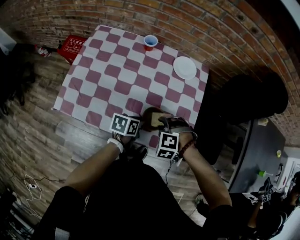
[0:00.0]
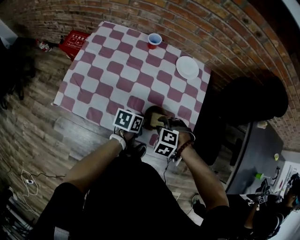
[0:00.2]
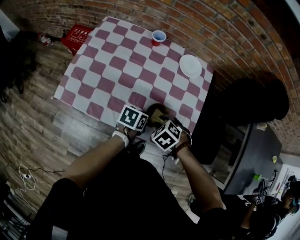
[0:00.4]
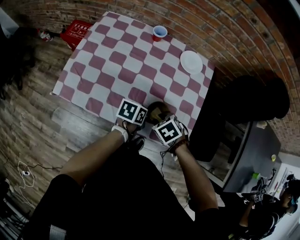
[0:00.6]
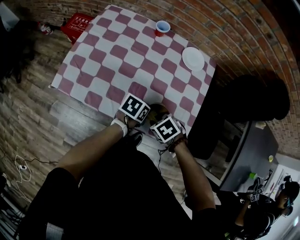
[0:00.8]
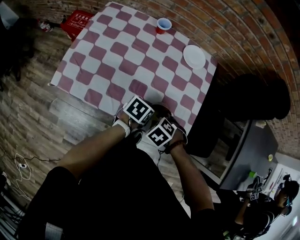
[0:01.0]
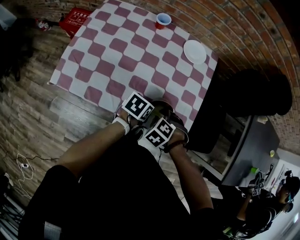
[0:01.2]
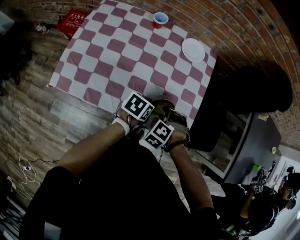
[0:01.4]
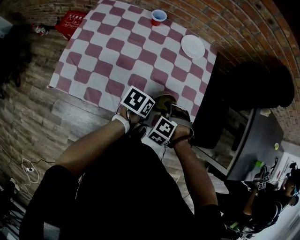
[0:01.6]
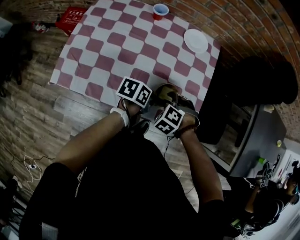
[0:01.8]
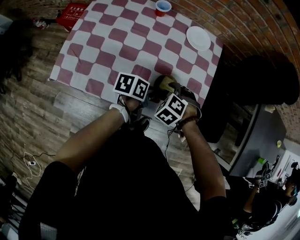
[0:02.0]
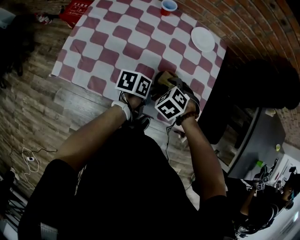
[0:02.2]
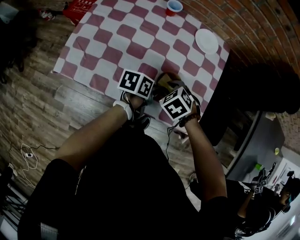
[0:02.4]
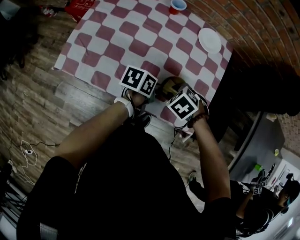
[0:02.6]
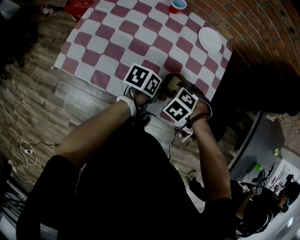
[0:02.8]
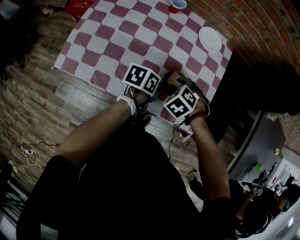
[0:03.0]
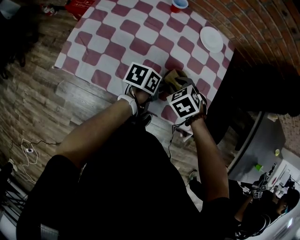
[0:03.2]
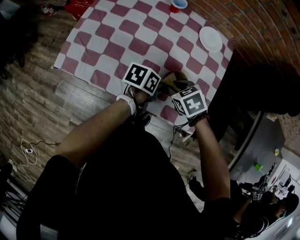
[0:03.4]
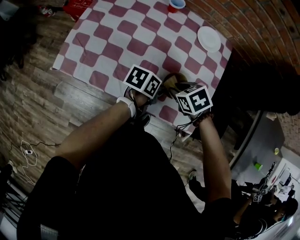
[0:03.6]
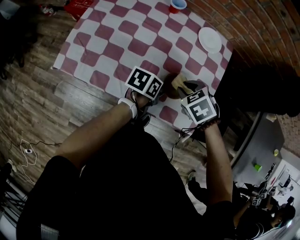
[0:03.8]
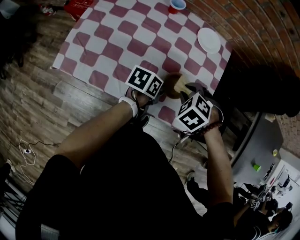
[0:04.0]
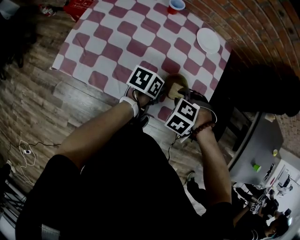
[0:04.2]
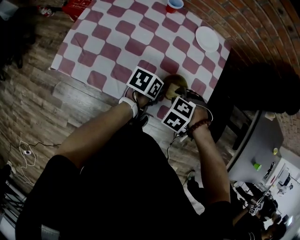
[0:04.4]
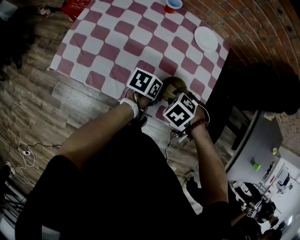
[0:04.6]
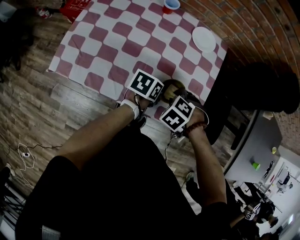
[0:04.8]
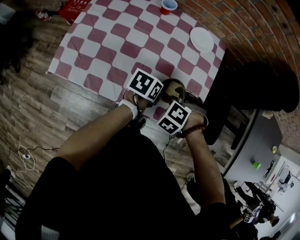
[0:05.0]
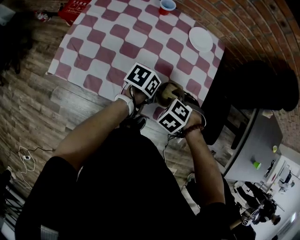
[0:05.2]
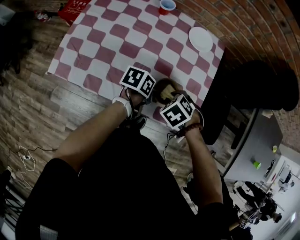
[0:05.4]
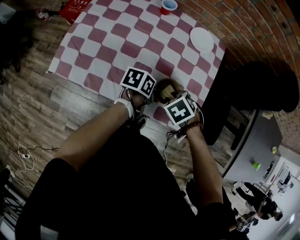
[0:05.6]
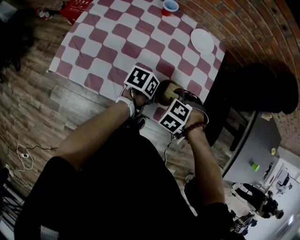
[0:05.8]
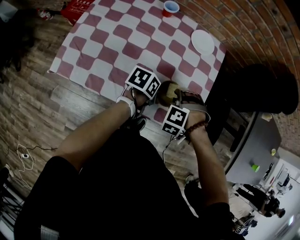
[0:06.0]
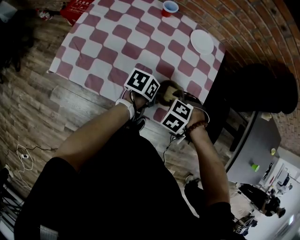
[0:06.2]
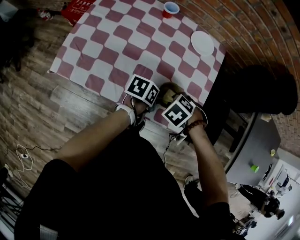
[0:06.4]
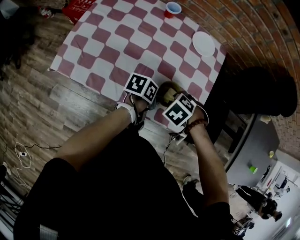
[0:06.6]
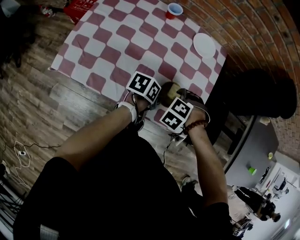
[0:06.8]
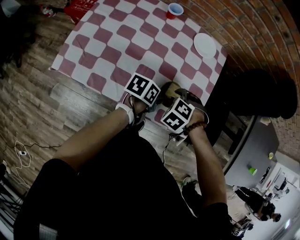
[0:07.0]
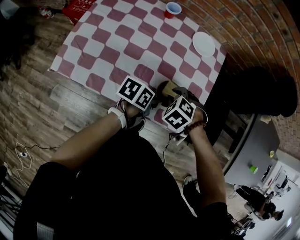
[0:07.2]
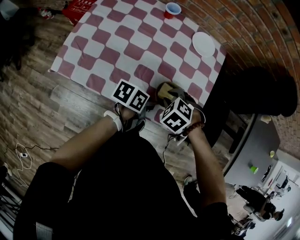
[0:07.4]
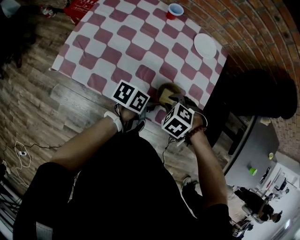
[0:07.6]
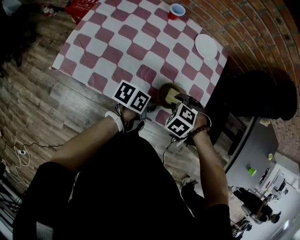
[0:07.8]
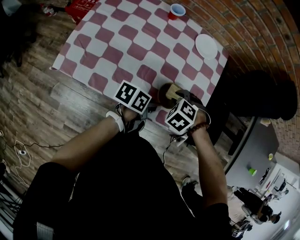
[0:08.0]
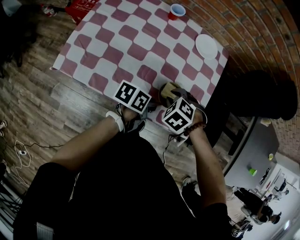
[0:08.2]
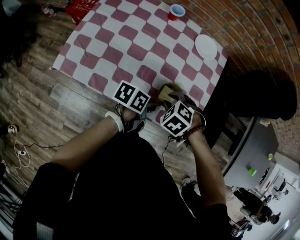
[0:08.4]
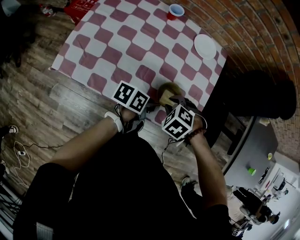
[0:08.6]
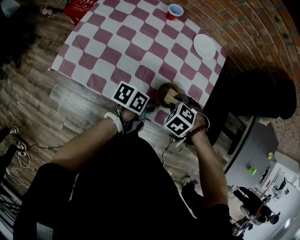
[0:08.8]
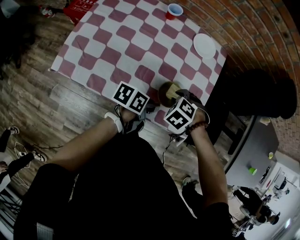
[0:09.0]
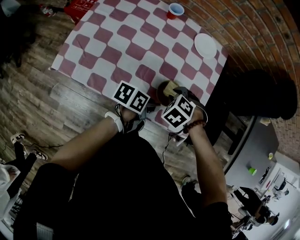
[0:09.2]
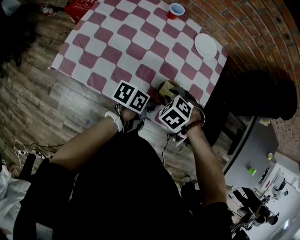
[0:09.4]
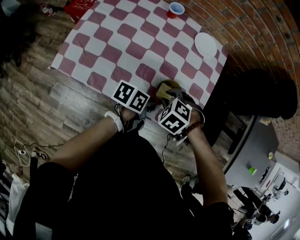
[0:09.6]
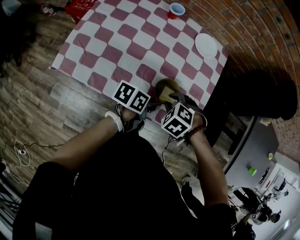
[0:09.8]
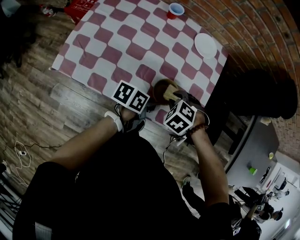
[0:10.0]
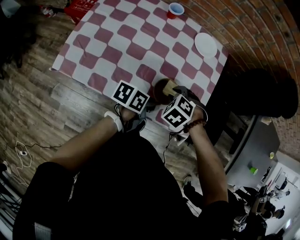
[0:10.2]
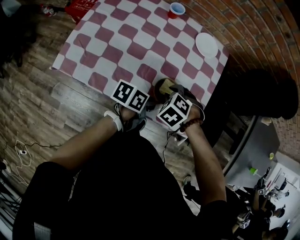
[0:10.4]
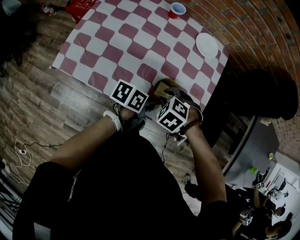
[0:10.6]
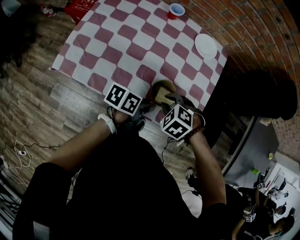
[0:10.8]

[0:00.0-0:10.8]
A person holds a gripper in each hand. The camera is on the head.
0:01.6 to 0:03.0: The right gripper ends up about 5 cm from where it was.
0:03.0 to 0:04.6: The right gripper ends up roughly 5 cm from where it was.
0:06.2 to 0:07.8: The left gripper ends up some 5 cm from where it was.
0:07.8 to 0:09.2: The grippers make only small movements.
0:09.2 to 0:10.8: The right gripper moves some 5 cm.

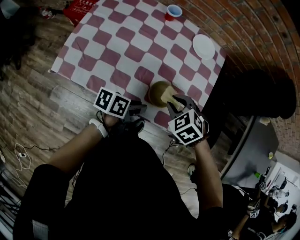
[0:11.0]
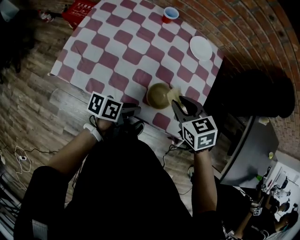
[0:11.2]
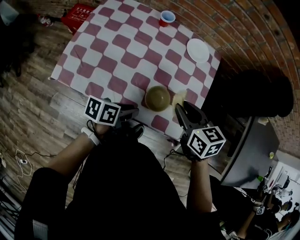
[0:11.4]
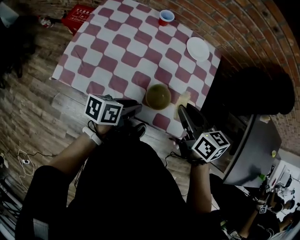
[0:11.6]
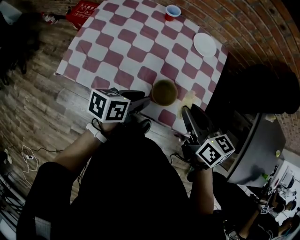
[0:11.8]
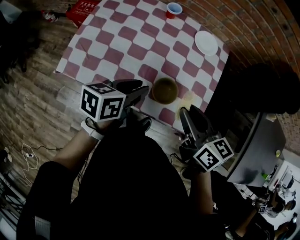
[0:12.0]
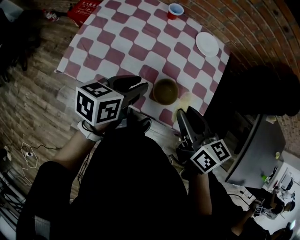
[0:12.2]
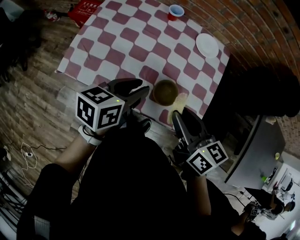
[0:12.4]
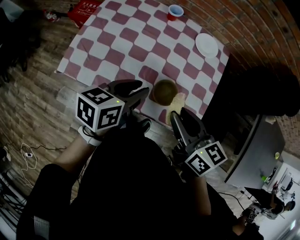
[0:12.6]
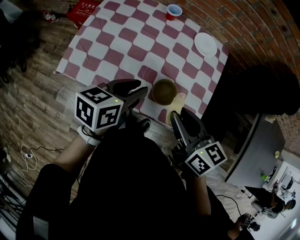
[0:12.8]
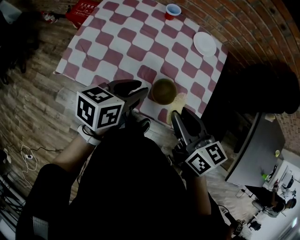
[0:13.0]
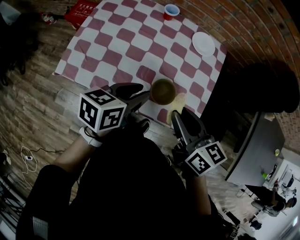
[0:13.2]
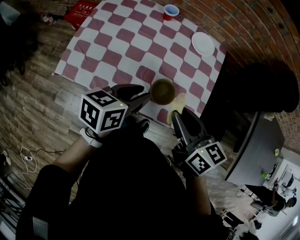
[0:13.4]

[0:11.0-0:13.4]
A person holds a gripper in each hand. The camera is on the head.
0:11.0 to 0:12.2: The left gripper shifts some 15 cm upward and to the left, and turns by roughly 30 degrees. Meanwhile the right gripper heads upward, covering roughly 15 cm, and tilts its fingers some 40 degrees upward.
0:12.2 to 0:13.4: The grippers stay close to where they were, moving slightly.

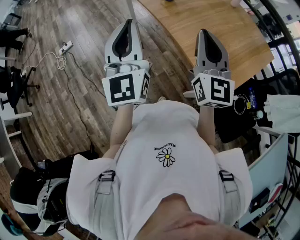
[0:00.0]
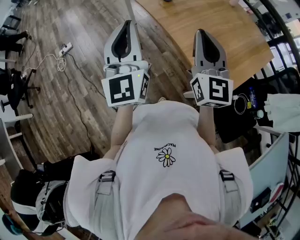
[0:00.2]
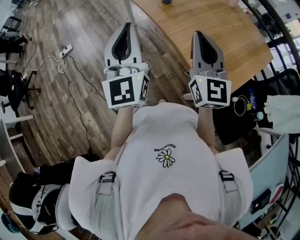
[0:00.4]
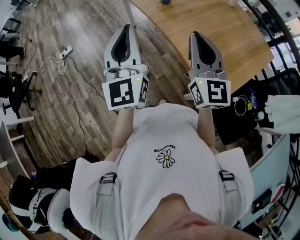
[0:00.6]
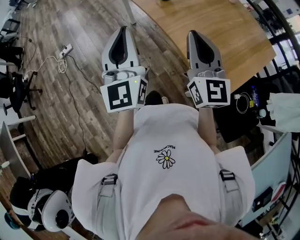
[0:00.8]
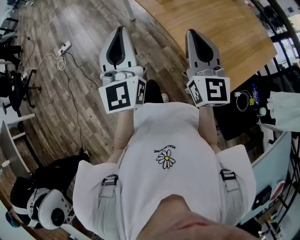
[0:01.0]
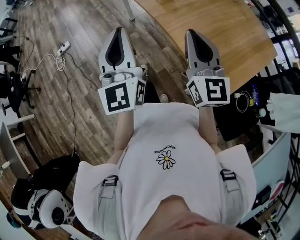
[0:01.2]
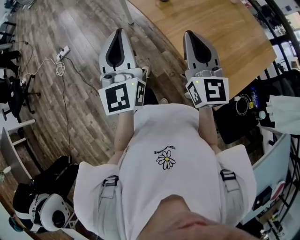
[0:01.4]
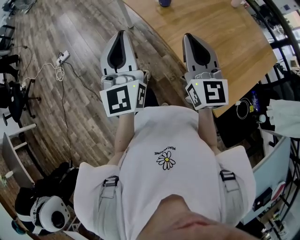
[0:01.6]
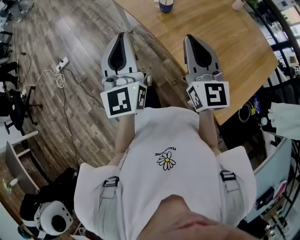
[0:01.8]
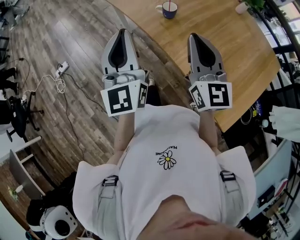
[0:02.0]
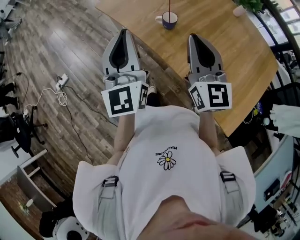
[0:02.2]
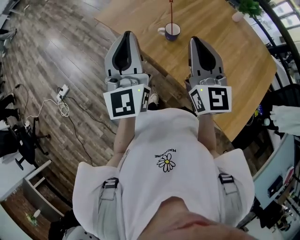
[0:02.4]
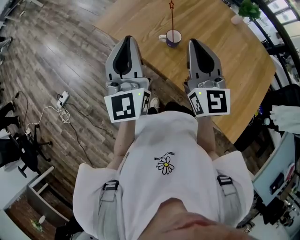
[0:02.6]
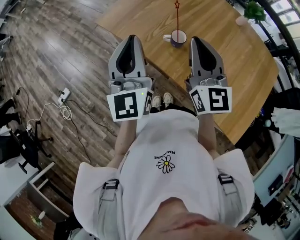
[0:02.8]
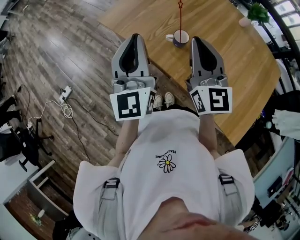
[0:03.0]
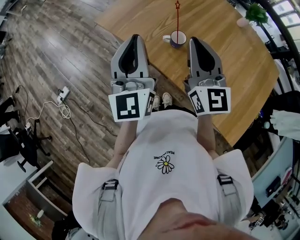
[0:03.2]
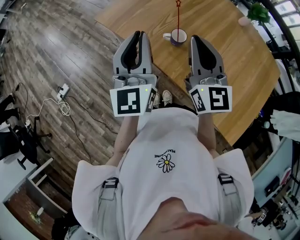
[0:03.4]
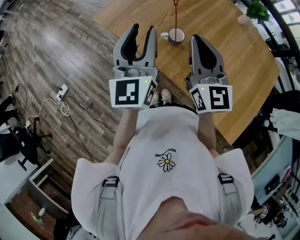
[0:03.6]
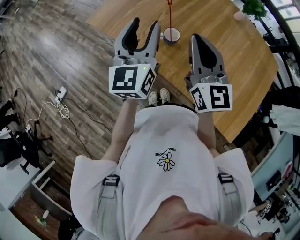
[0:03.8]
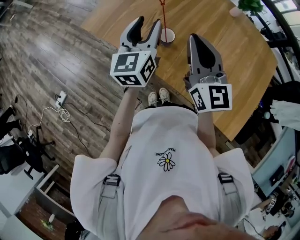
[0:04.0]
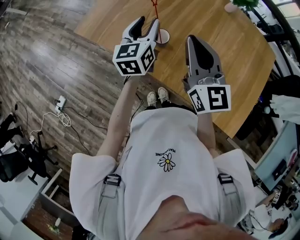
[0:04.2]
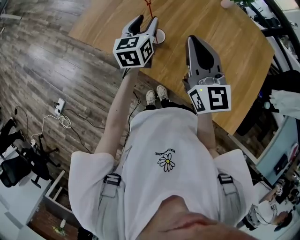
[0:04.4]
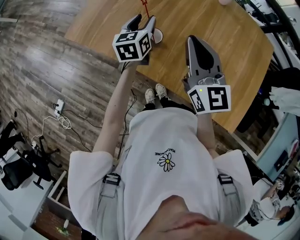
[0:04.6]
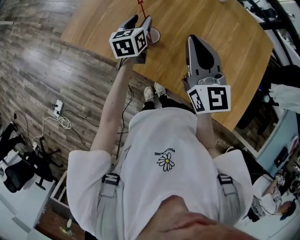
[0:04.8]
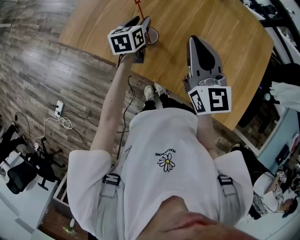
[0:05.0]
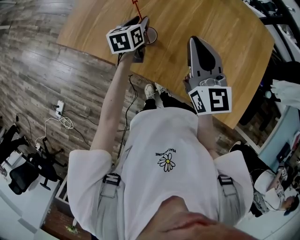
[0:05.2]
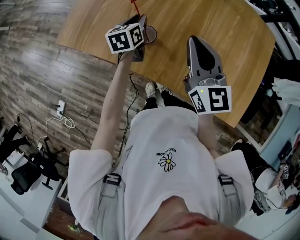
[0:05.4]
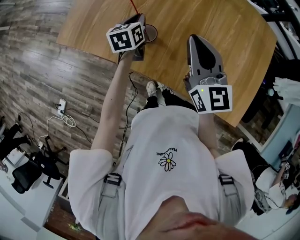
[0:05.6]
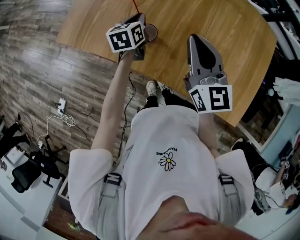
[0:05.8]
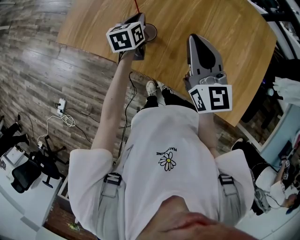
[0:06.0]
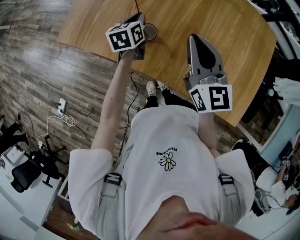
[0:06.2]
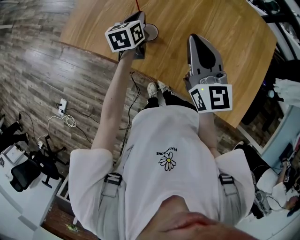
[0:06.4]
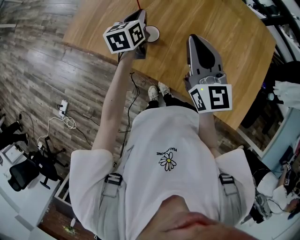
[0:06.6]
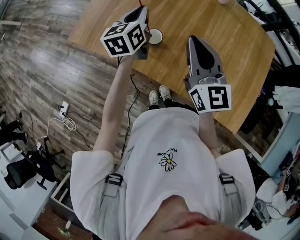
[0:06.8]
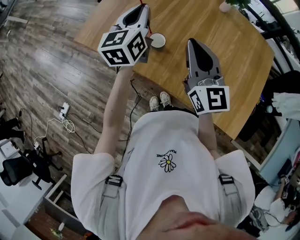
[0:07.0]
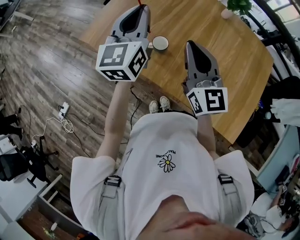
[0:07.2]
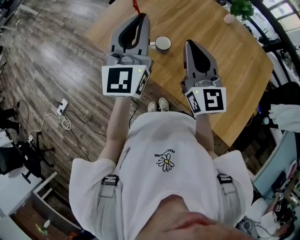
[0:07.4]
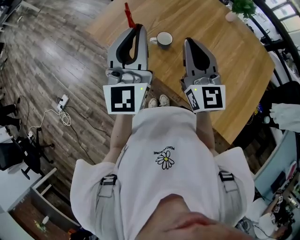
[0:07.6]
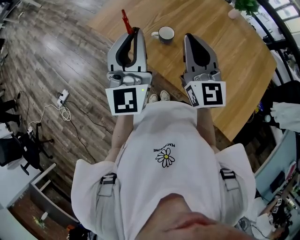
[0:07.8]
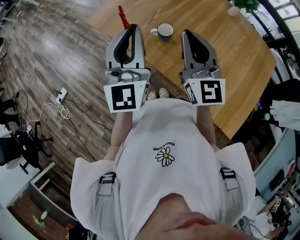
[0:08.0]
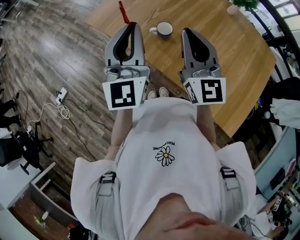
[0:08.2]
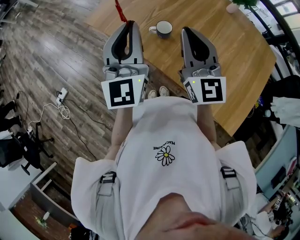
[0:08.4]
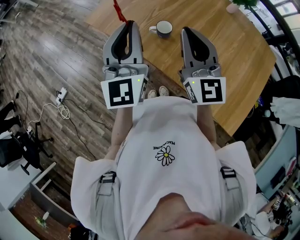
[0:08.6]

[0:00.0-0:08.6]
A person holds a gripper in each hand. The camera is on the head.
0:00.0 to 0:01.4: Both grippers move forward, some 5 cm.
0:01.4 to 0:02.8: Both grippers move forward, some 35 cm.
0:02.8 to 0:04.4: The right gripper goes about 5 cm to the right. Meanwhile the left gripper goes about 30 cm forward, downward and to the right, rotates about 40 degrees, and opens its fingers.
0:04.4 to 0:05.8: The left gripper heads downward, covering roughly 10 cm, and closes; the right gripper changes place by about 5 cm.
0:05.8 to 0:07.2: The left gripper is displaced upward by approximately 30 cm, and angles its fingers upward, by approximately 40 degrees. The right gripper heads upward, covering some 5 cm.
0:07.2 to 0:08.6: The right gripper changes place by roughly 5 cm. Meanwhile the left gripper heads backward and to the left, covering some 15 cm.

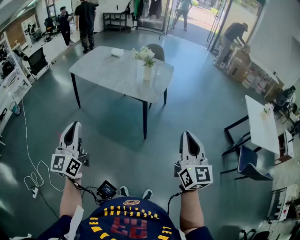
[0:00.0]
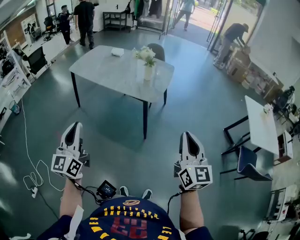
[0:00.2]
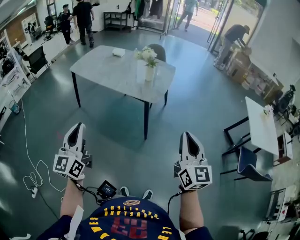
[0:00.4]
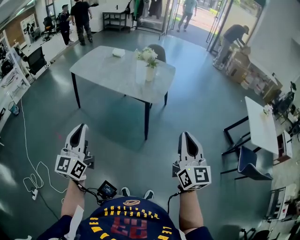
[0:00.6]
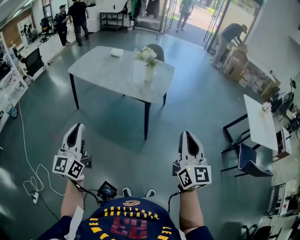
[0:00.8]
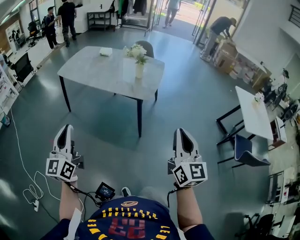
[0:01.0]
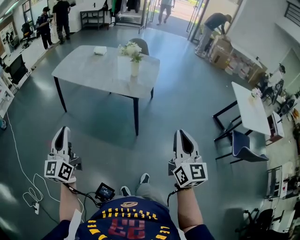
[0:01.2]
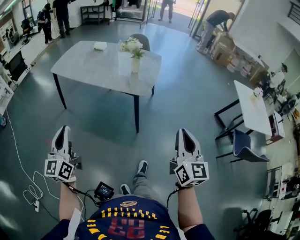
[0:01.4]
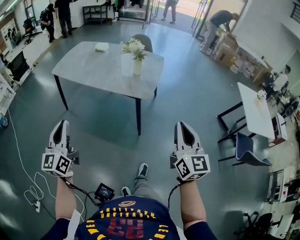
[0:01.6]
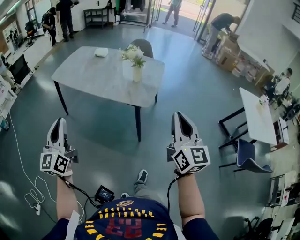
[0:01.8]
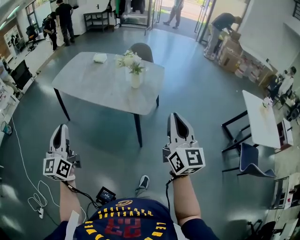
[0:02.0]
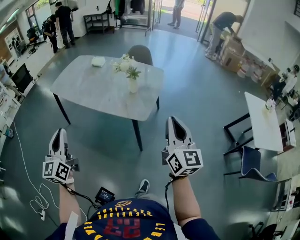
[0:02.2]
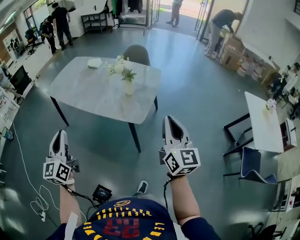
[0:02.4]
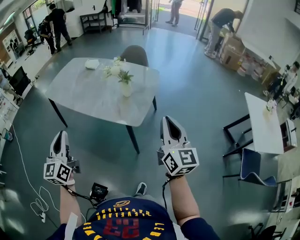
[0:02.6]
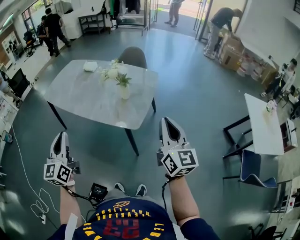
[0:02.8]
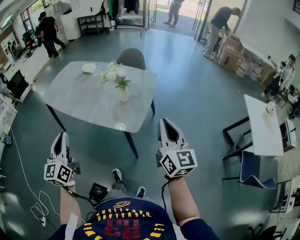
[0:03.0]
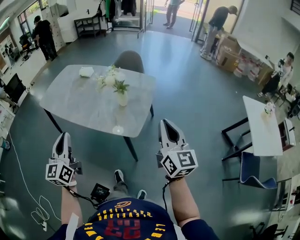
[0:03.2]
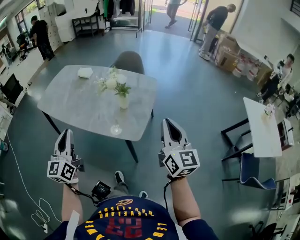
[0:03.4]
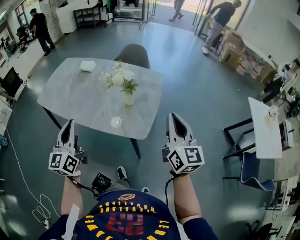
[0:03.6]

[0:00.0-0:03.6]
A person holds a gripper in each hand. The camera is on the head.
0:00.0 to 0:01.8: The right gripper is displaced forward by about 15 cm. The left gripper shifts about 15 cm forward and to the left.
0:01.8 to 0:03.6: Both grippers travel together forward, some 30 cm.
